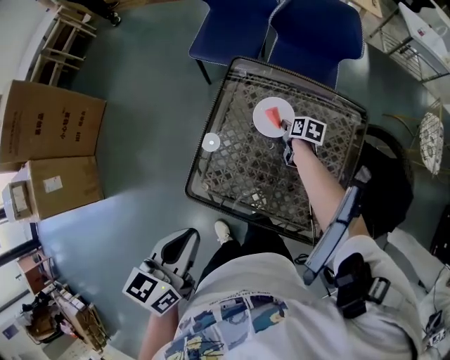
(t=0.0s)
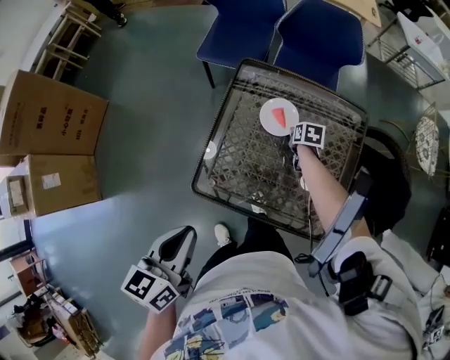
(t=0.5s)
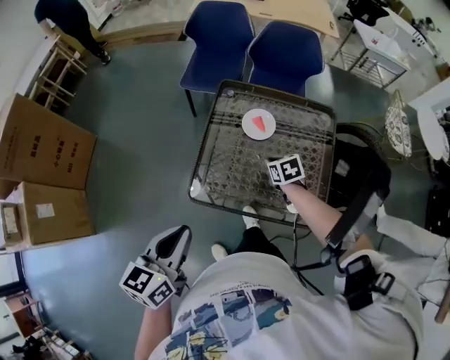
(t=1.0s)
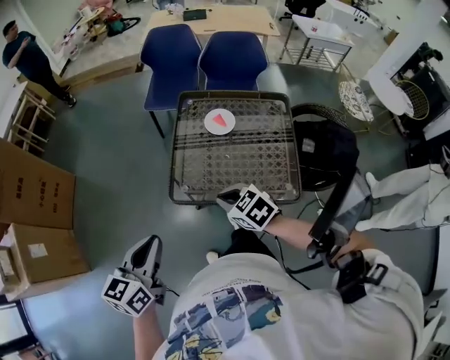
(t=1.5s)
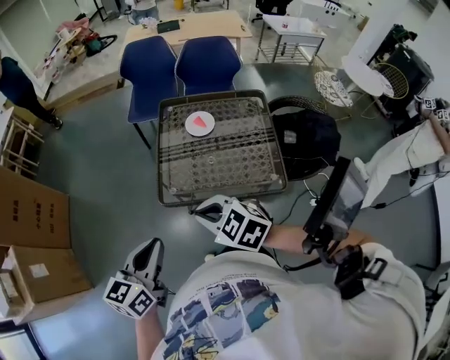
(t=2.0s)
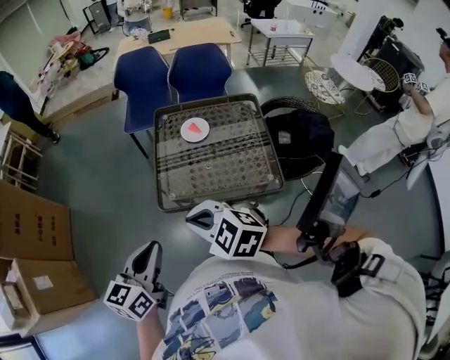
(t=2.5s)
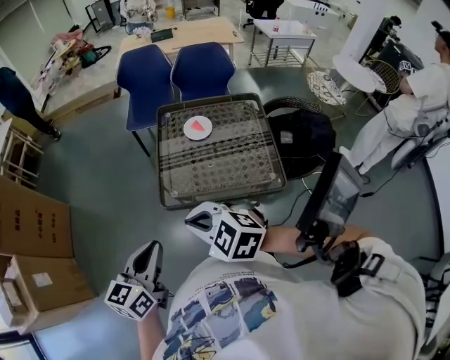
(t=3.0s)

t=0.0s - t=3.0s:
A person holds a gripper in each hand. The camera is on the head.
t=0.0s - t=1.5s: The right gripper is displaced backward, upward and to the left by about 50 cm, twists roughly 50 degrees counterclockwise, seen from behind, and closes its fingers, while the left gripper is displaced backward and to the left by about 20 cm.
t=1.5s - t=3.0s: The right gripper heads upward, backward and to the left, covering approximately 20 cm, and changes its angle by approximately 20 degrees.

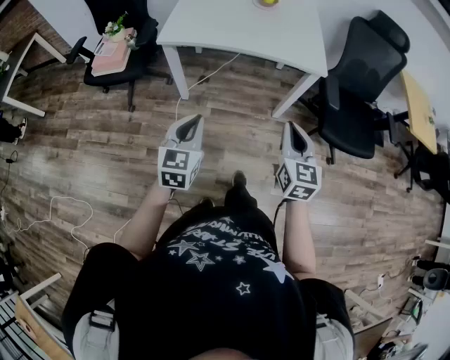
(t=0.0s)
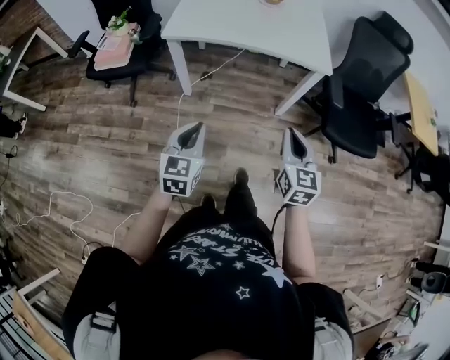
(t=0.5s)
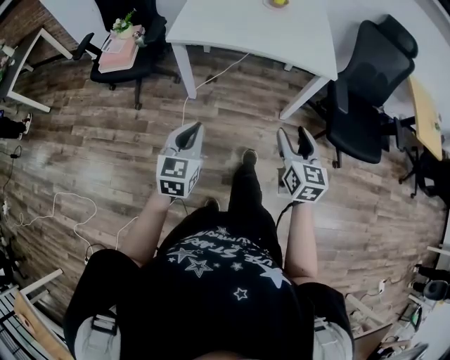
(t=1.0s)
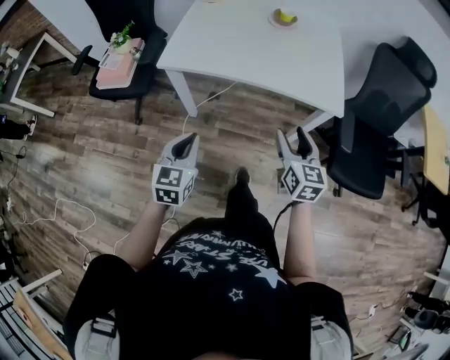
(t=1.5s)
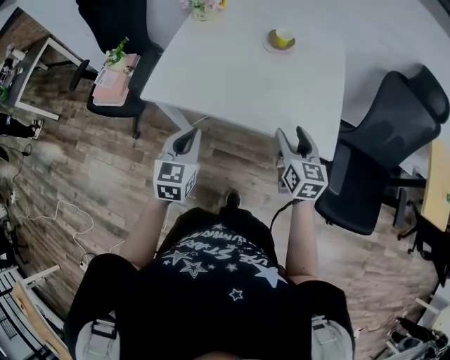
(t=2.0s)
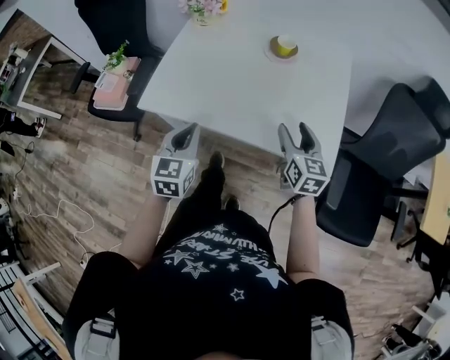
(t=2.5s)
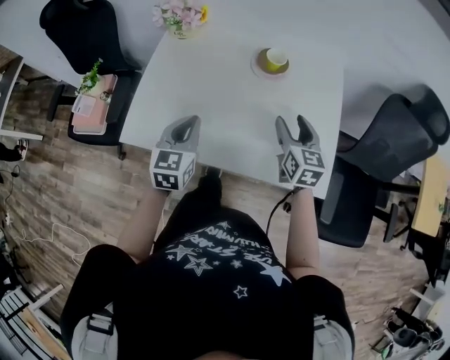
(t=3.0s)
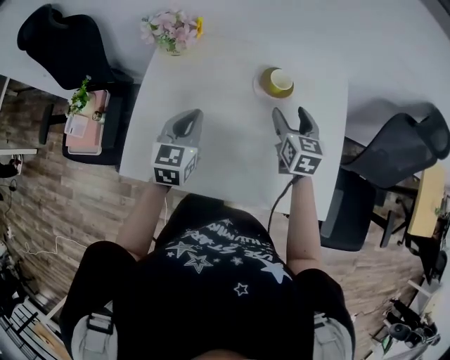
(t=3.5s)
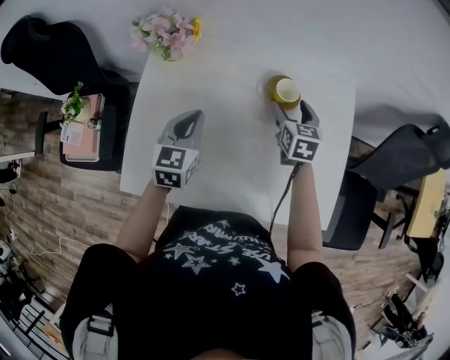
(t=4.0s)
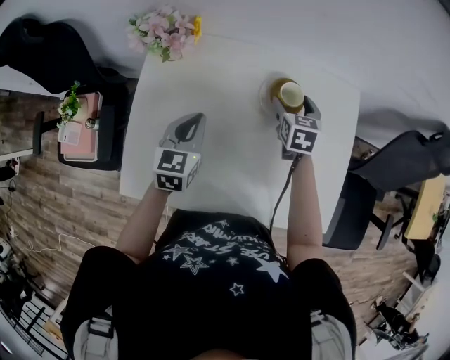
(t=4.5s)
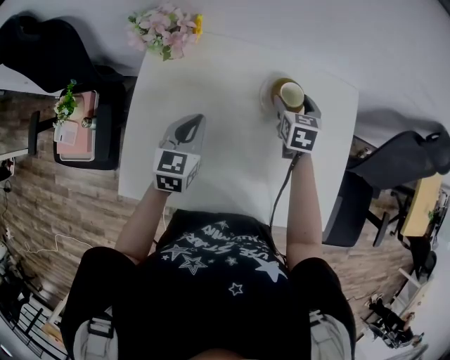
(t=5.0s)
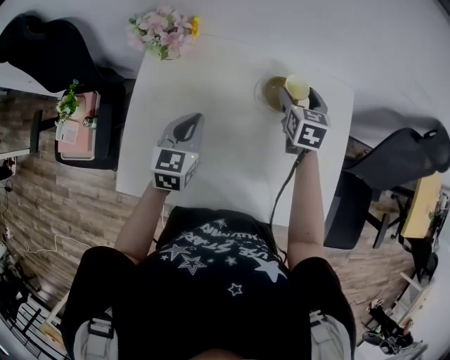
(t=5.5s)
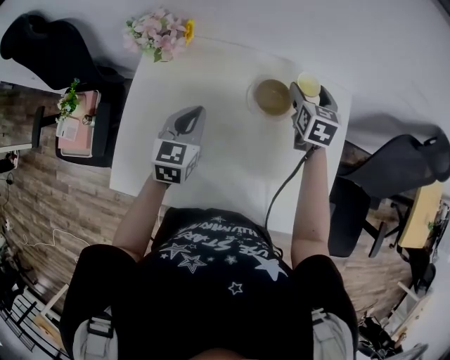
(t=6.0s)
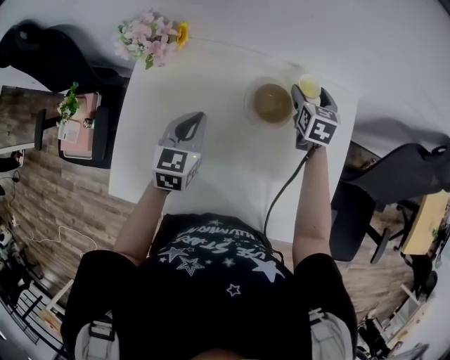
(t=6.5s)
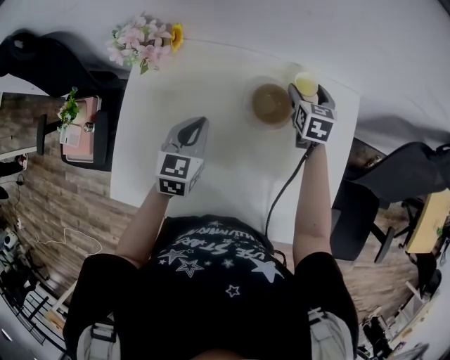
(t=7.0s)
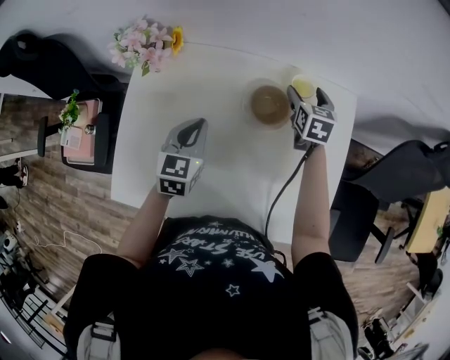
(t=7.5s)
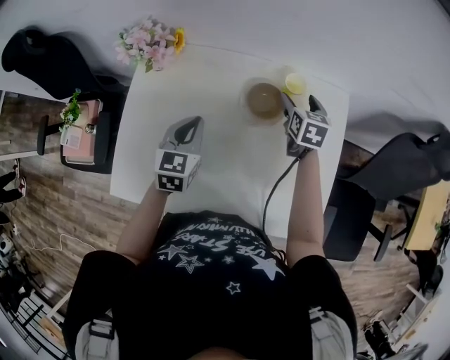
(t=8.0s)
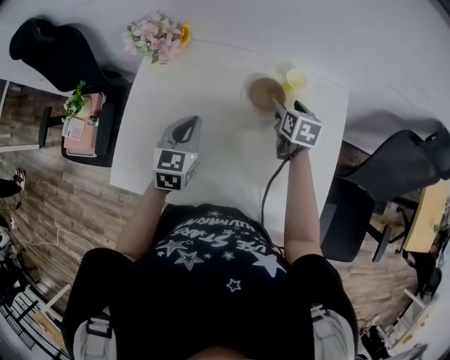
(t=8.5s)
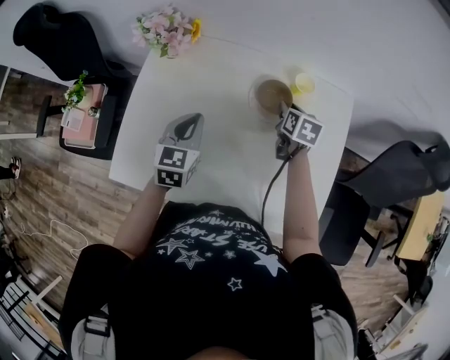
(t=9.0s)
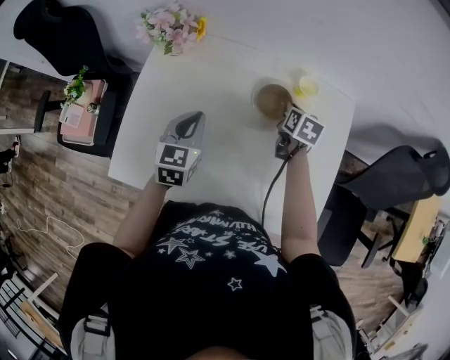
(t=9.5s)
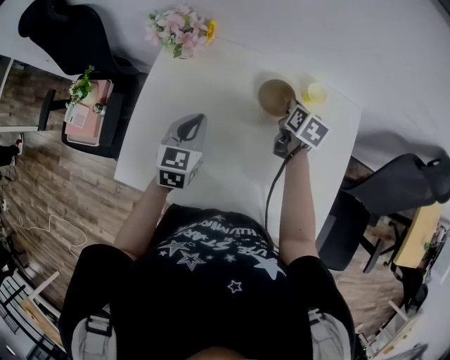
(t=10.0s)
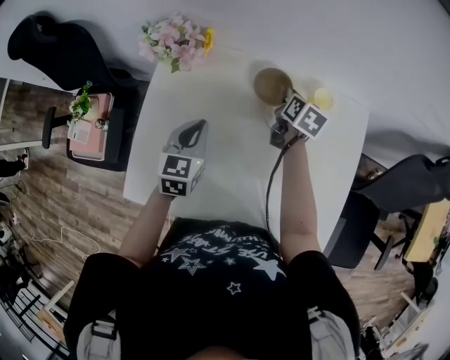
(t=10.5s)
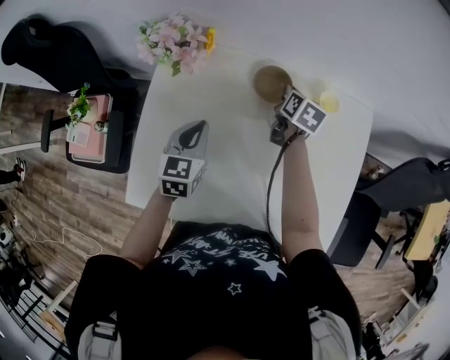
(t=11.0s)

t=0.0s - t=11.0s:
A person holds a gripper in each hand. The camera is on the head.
t=0.0s - t=2.0s: Both grippers travel together forward, about 35 cm. The right gripper opens up.
t=2.0s - t=3.5s: Both grippers travel together forward, about 35 cm.
t=3.5s - t=5.5s: The right gripper shifts some 10 cm forward. The left gripper changes place by some 5 cm.
t=5.5s - t=7.5s: The left gripper is displaced to the right by approximately 5 cm. The right gripper goes roughly 10 cm forward, to the right and downward.
t=7.5s - t=9.0s: The left gripper shifts by about 5 cm. Meanwhile the right gripper is displaced backward by about 10 cm, and closes its fingers.
t=9.0s - t=11.0s: The left gripper travels to the left by some 5 cm. The right gripper travels forward and to the left by some 10 cm.

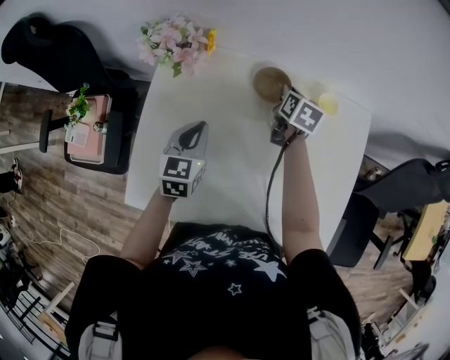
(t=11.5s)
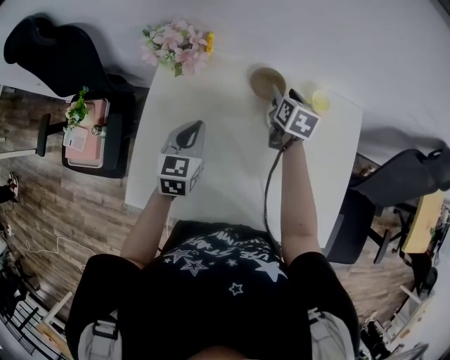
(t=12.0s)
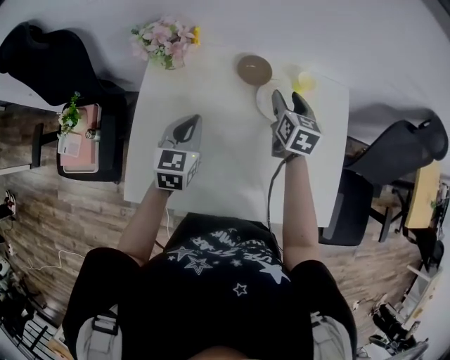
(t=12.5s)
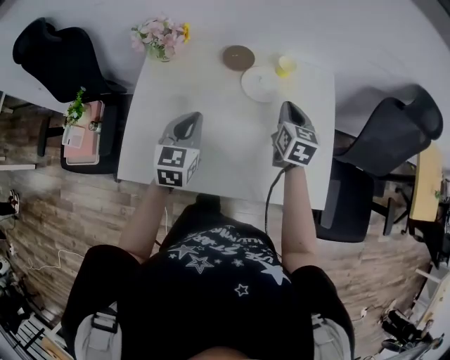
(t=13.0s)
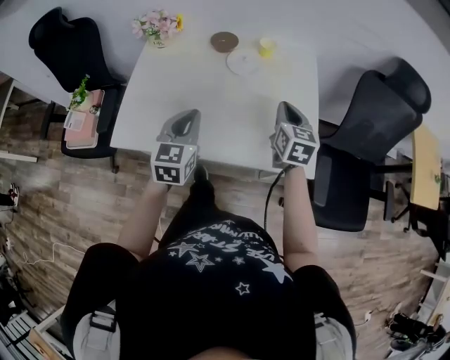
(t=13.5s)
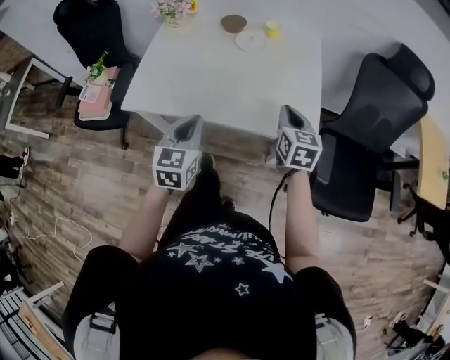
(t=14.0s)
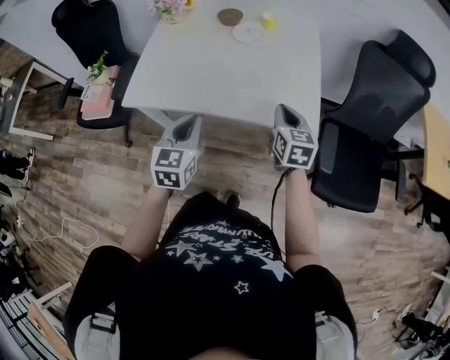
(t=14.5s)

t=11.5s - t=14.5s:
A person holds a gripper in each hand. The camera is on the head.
t=11.5s - t=13.0s: The right gripper is displaced backward, upward and to the right by roughly 25 cm, changes its angle by roughly 20 degrees, and opens and closes again. The left gripper shifts some 15 cm backward, upward and to the right.
t=13.0s - t=14.5s: The grippers both shift backward by roughly 30 cm.

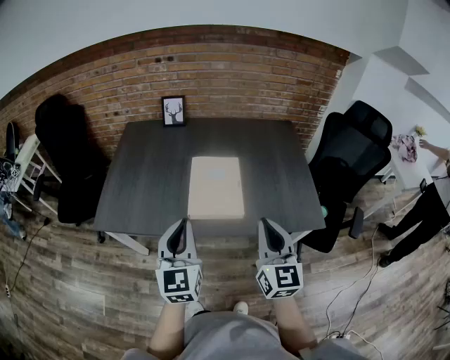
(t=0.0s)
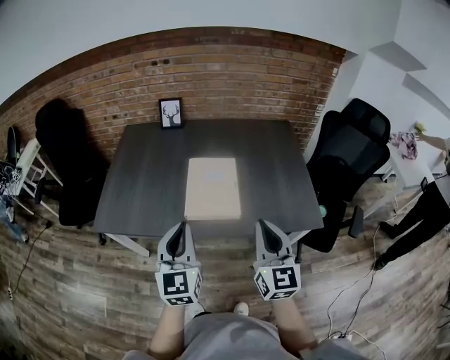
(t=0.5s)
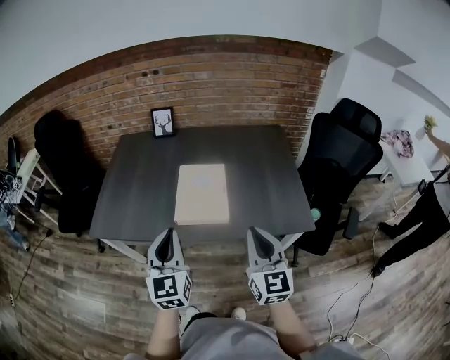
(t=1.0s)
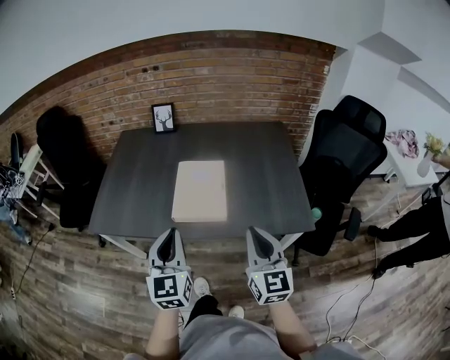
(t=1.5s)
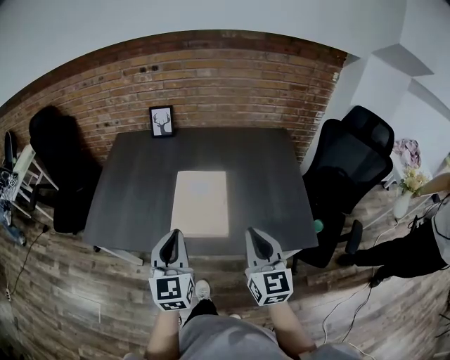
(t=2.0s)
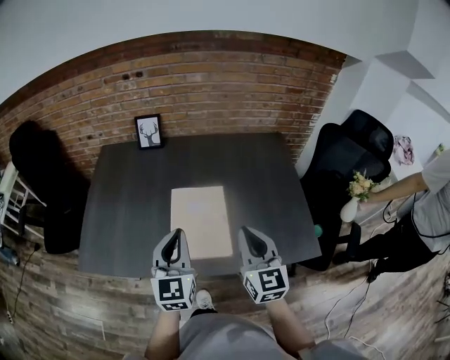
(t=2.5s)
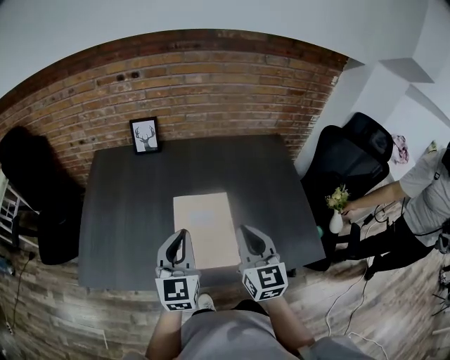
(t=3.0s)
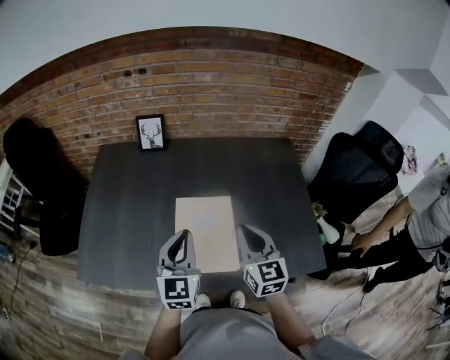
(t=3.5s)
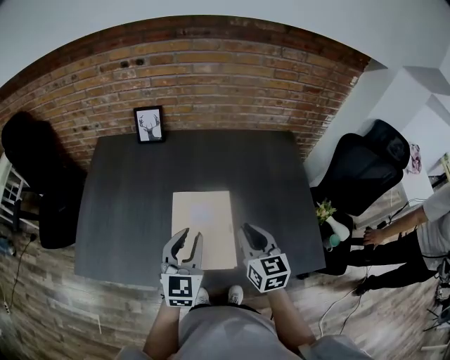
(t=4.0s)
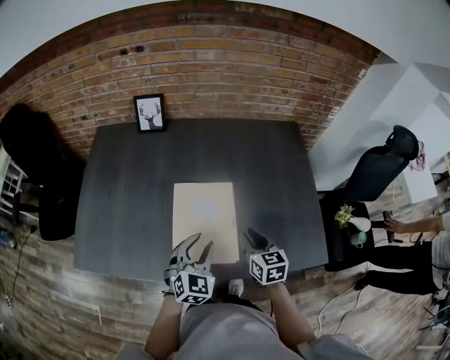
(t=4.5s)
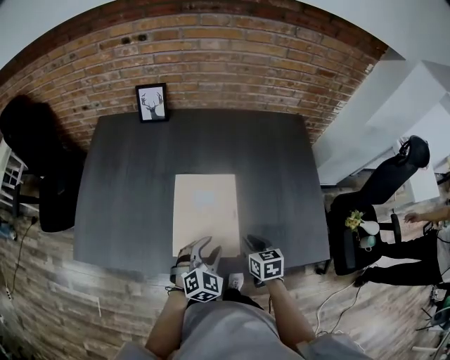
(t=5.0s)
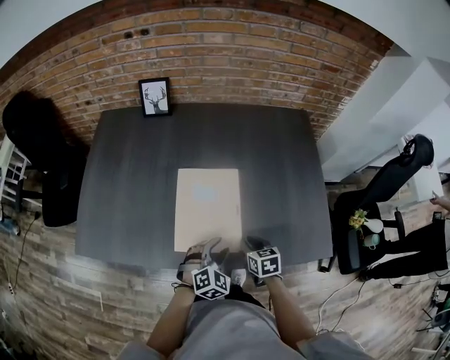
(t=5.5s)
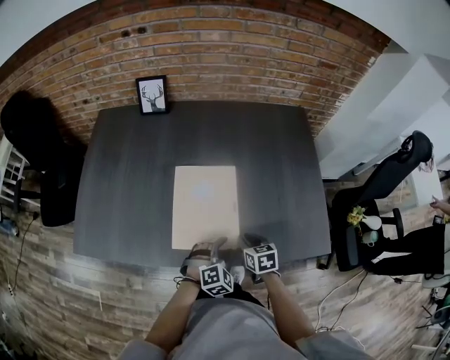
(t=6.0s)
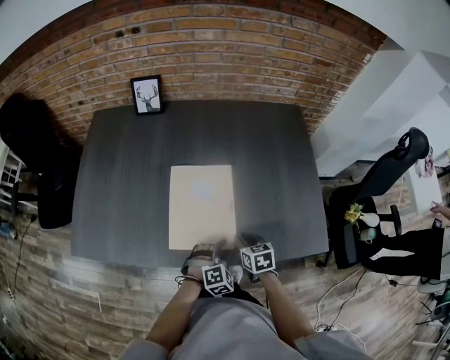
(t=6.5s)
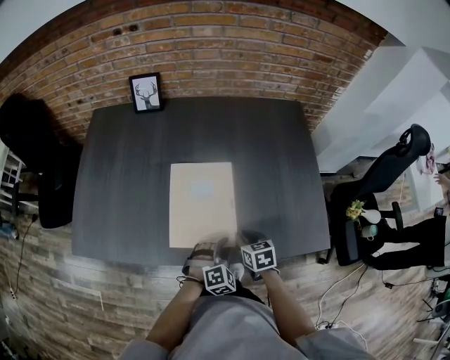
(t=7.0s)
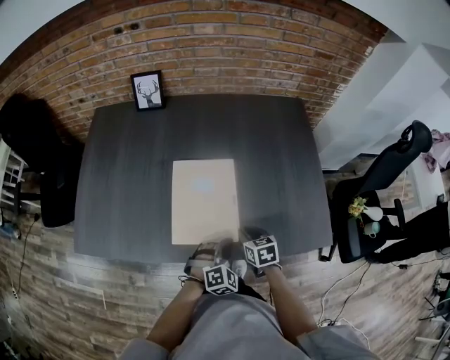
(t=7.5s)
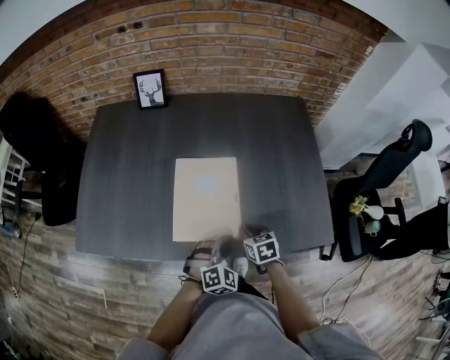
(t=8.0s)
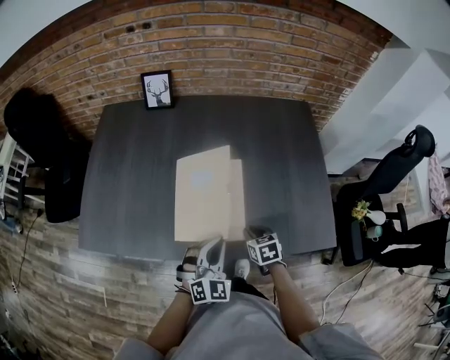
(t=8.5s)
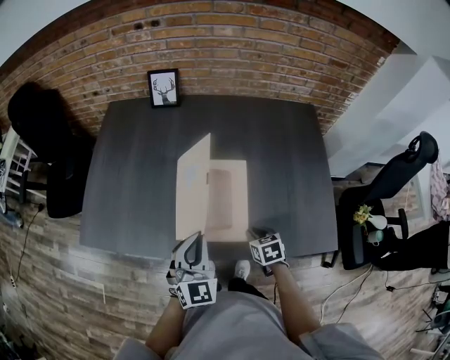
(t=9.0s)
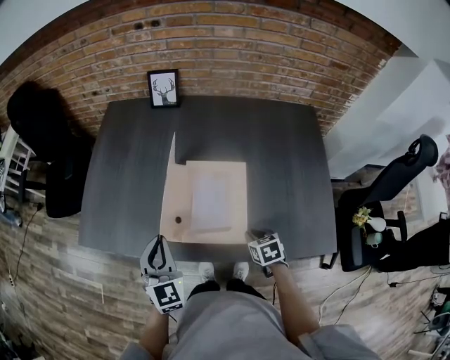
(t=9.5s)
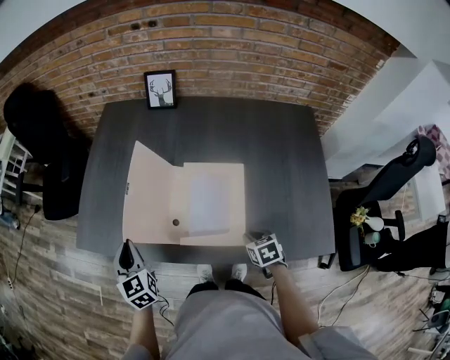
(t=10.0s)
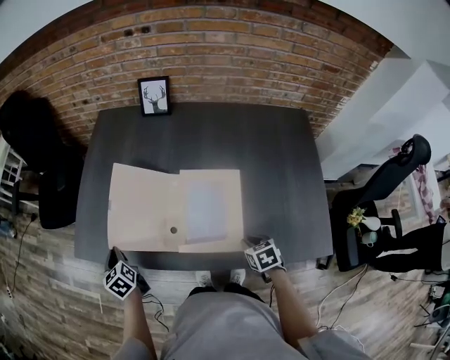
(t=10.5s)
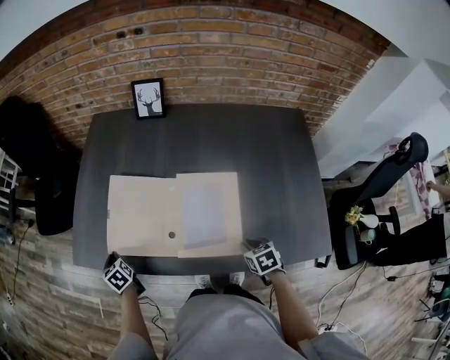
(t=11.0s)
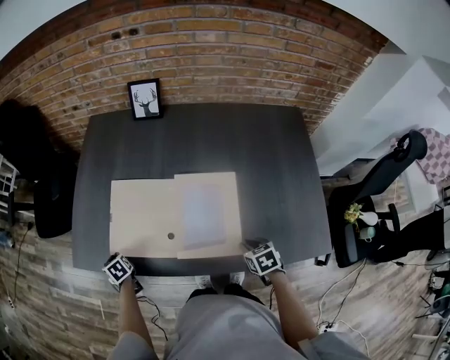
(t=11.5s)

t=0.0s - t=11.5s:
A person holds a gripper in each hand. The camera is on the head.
t=0.0s - t=2.0s: The left gripper heads to the right and forward, covering roughly 10 cm; the right gripper shifts some 10 cm forward and to the right.
t=2.0s - t=4.0s: The right gripper heads forward and downward, covering approximately 20 cm. Meanwhile the left gripper heads forward, covering approximately 20 cm, and opens up.
t=4.0s - t=6.0s: The right gripper travels downward by roughly 20 cm, and angles its fingers downward, by about 30 degrees. Meanwhile the left gripper shifts some 25 cm downward, to the right and backward, and tips its fingers downward by roughly 40 degrees.
t=6.0s - t=7.5s: The left gripper closes.
t=7.5s - t=9.5s: The left gripper shifts some 30 cm to the left and upward, and turns by some 60 degrees.
t=9.5s - t=11.5s: The left gripper shifts approximately 35 cm downward, to the left and forward, and points its fingers about 40 degrees further downward.
